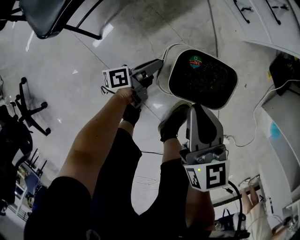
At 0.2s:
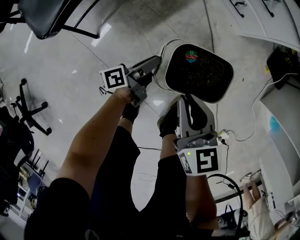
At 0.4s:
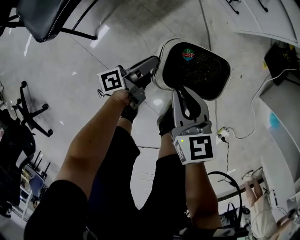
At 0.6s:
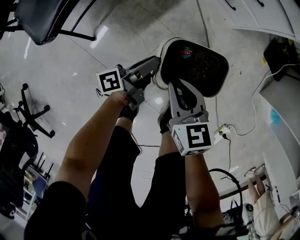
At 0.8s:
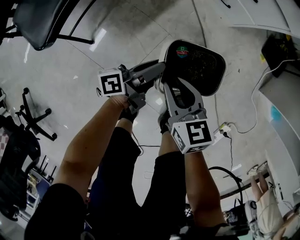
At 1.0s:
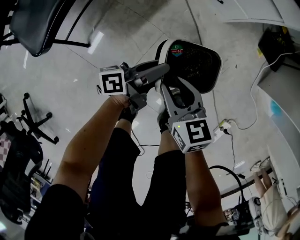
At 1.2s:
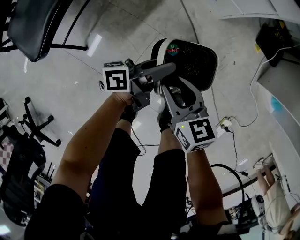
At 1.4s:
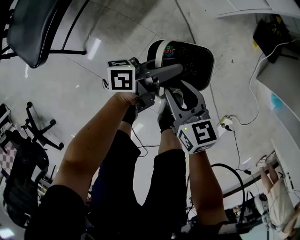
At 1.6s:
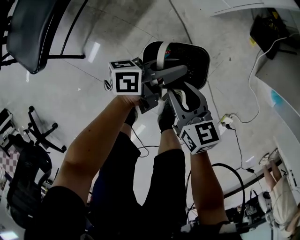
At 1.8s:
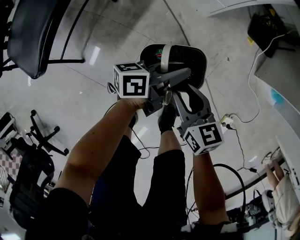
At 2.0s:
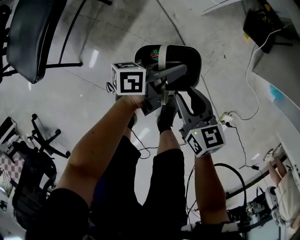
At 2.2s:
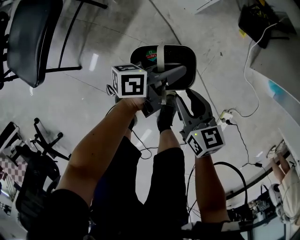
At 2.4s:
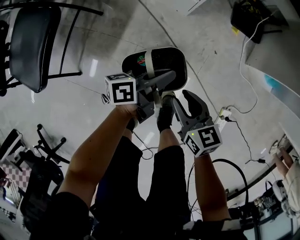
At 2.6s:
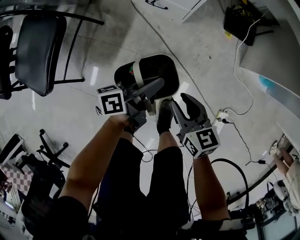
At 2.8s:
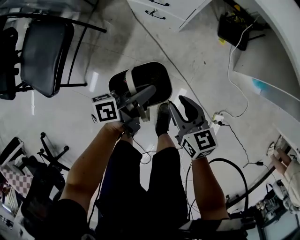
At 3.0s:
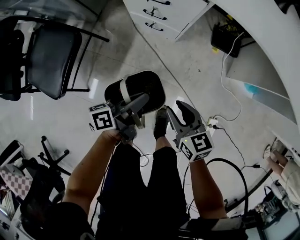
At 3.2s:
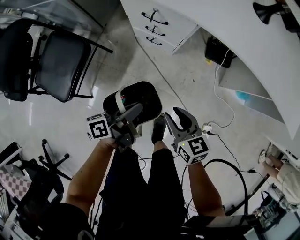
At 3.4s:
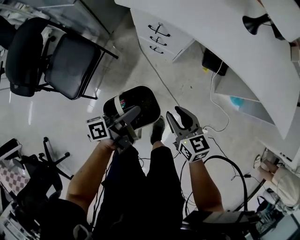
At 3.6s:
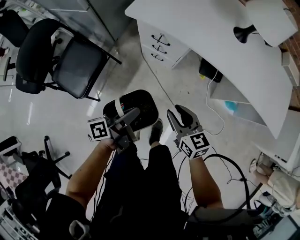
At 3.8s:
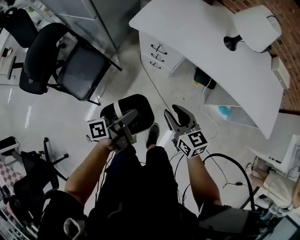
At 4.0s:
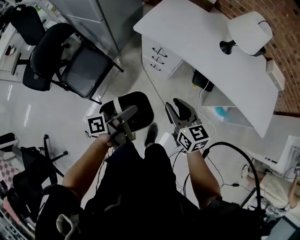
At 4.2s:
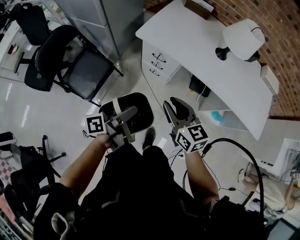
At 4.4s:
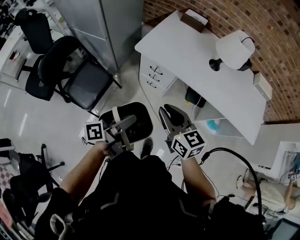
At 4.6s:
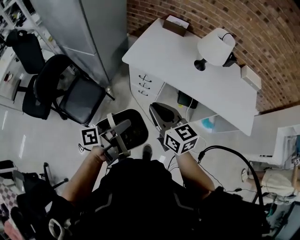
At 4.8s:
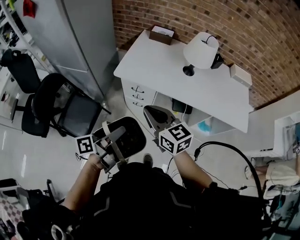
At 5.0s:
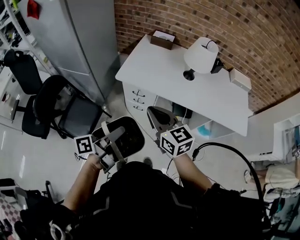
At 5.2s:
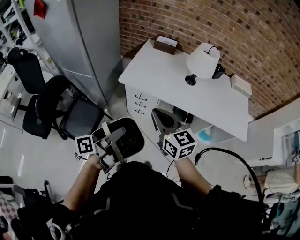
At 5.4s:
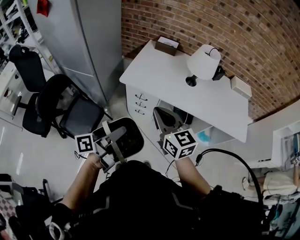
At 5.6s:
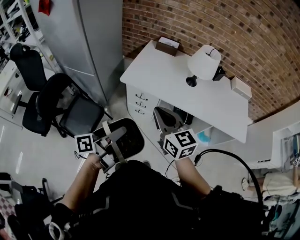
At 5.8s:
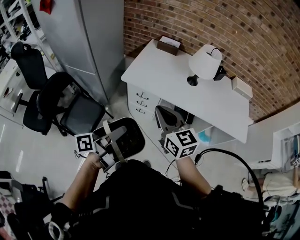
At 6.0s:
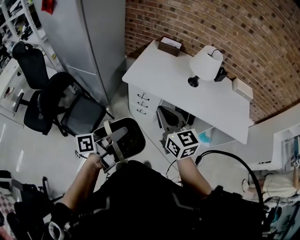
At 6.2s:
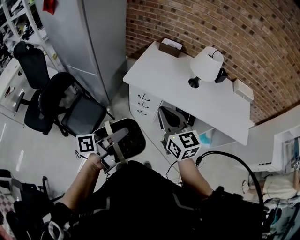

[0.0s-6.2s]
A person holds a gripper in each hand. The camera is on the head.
0.0s to 1.6s: The right gripper moves to the right, approximately 5 cm, and opens up; the left gripper is displaced to the right and upward by about 25 cm, and changes its angle by some 30 degrees.
1.6s to 3.2s: The two grippers go some 25 cm upward. The left gripper closes.
3.2s to 4.6s: Both grippers travel together upward, approximately 40 cm. The right gripper changes its angle by approximately 20 degrees.
4.6s to 6.2s: Both grippers travel together upward, roughly 5 cm.

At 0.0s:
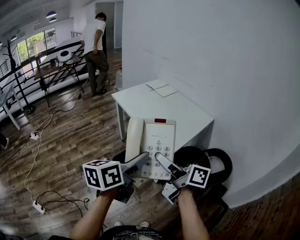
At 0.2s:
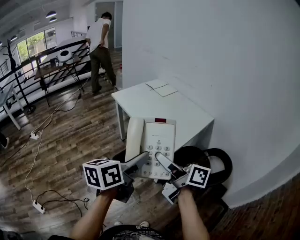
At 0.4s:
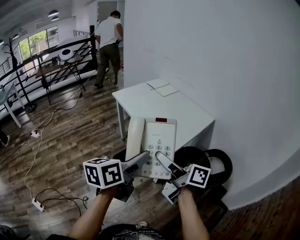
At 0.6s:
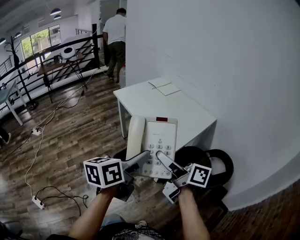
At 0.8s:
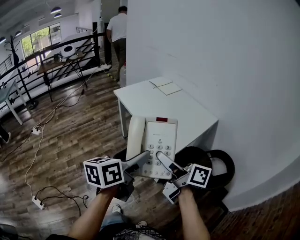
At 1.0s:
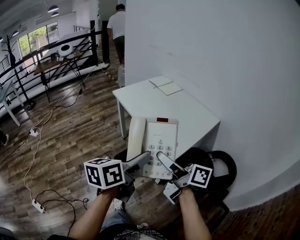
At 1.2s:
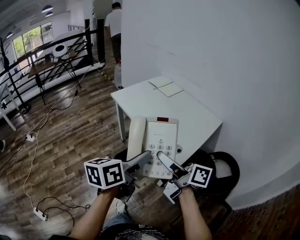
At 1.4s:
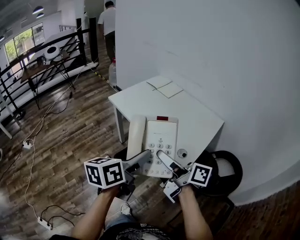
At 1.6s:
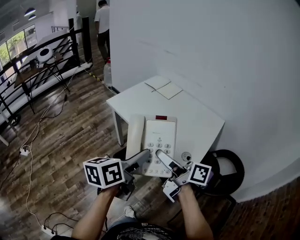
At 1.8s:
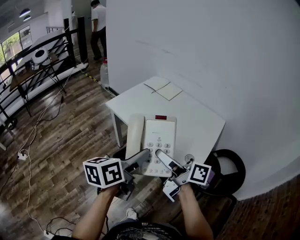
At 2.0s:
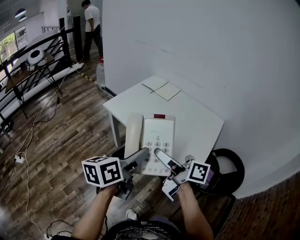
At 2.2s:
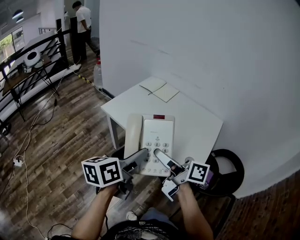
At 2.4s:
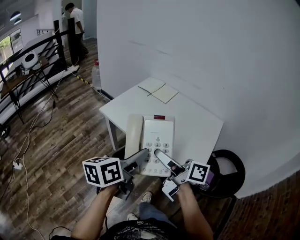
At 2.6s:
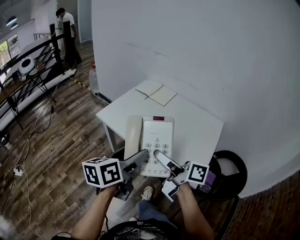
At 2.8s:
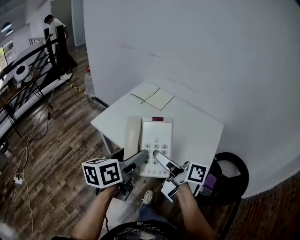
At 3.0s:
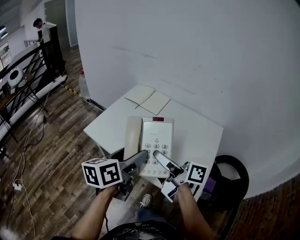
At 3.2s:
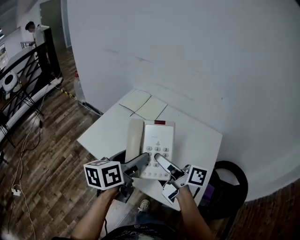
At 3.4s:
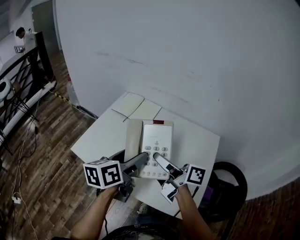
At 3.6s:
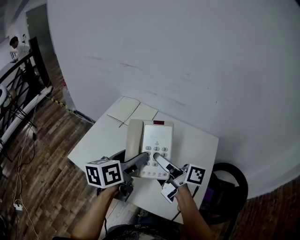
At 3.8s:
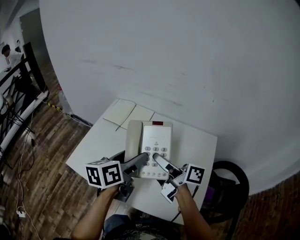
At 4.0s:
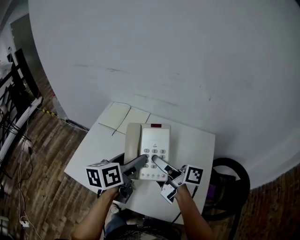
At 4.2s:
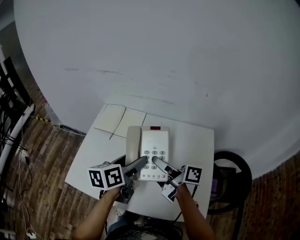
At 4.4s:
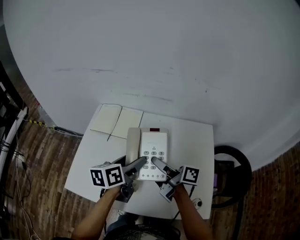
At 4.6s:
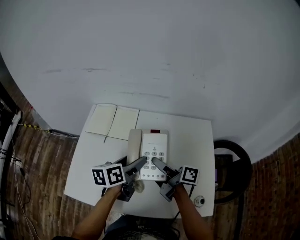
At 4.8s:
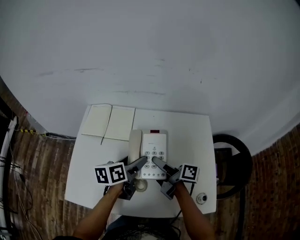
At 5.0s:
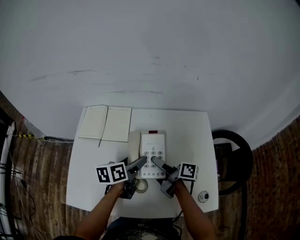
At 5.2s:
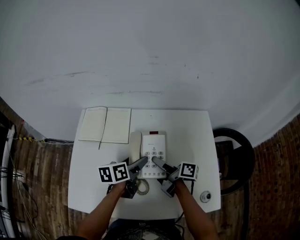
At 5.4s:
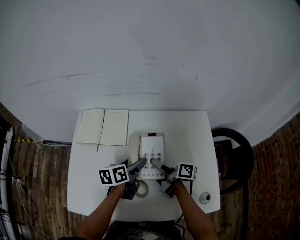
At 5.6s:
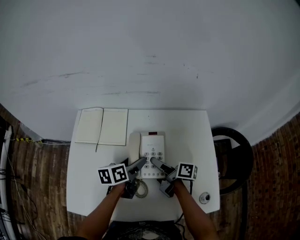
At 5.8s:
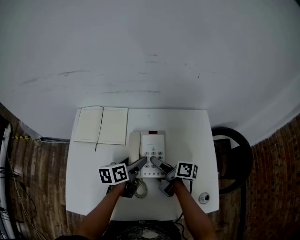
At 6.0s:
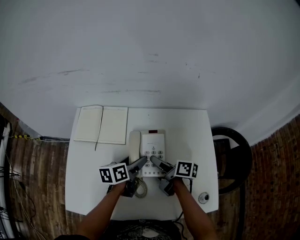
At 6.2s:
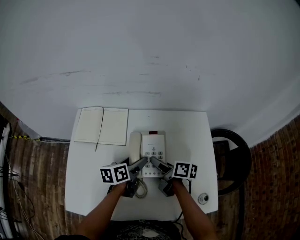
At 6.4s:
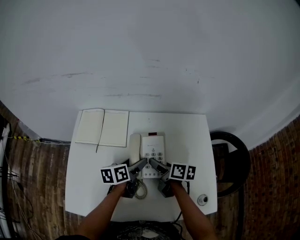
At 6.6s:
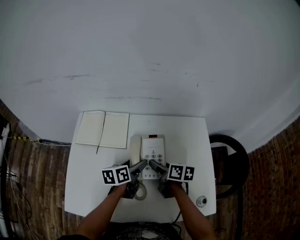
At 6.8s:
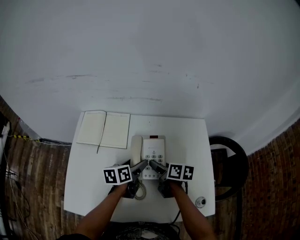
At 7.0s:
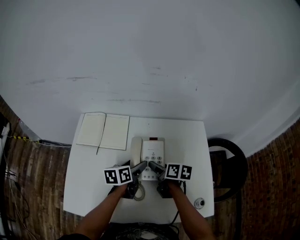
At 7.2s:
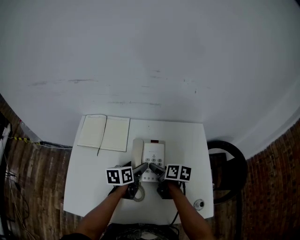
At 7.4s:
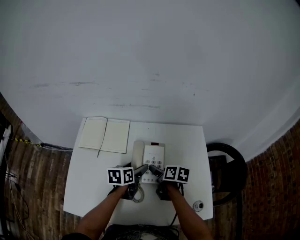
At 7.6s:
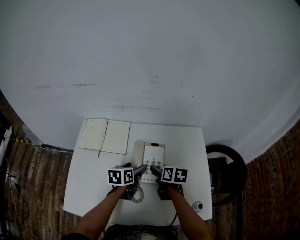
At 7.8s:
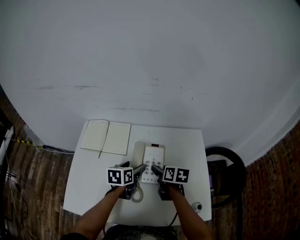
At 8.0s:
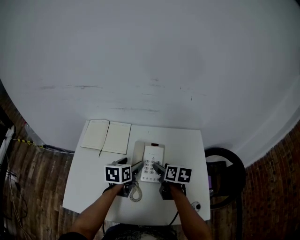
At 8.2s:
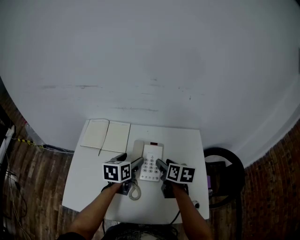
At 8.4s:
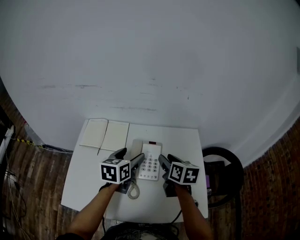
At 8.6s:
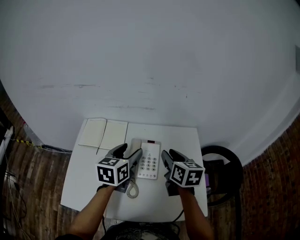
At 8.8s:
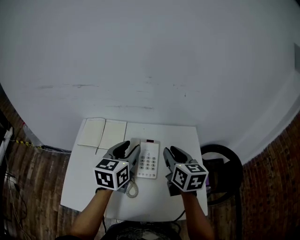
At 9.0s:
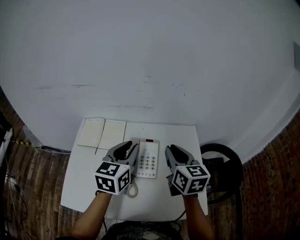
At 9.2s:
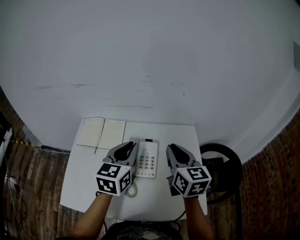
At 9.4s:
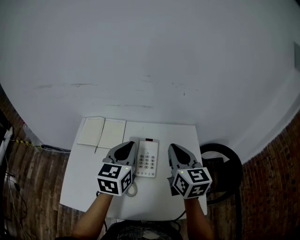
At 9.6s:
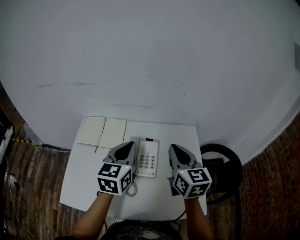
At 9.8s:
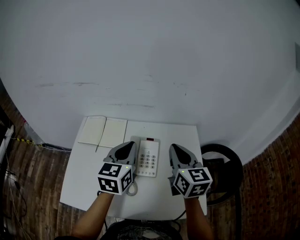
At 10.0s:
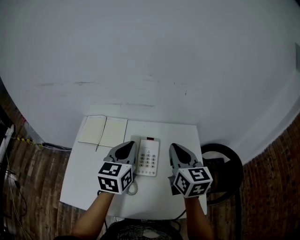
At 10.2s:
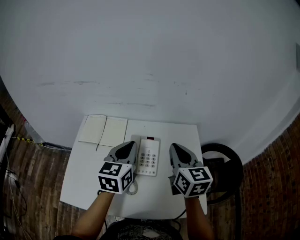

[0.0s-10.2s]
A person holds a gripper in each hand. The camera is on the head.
0.0s to 1.4s: Both grippers move forward, about 20 cm.
1.4s to 3.0s: Both grippers move forward, about 25 cm.
3.0s to 4.4s: Both grippers move forward, some 25 cm. The left gripper swivels approximately 20 degrees, while the right gripper turns by some 20 degrees.
4.4s to 5.8s: The two grippers go approximately 15 cm downward and forward. The right gripper turns by approximately 20 degrees.
5.8s to 7.2s: The right gripper turns by roughly 30 degrees, and opens.
7.2s to 8.8s: Both grippers travel together upward, some 20 cm. The left gripper changes its angle by approximately 30 degrees, and closes up, while the right gripper changes its angle by some 40 degrees, and closes.
8.8s to 10.2s: The left gripper closes up.

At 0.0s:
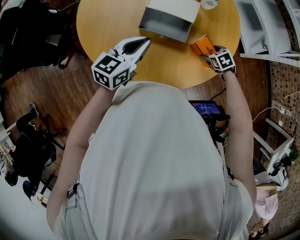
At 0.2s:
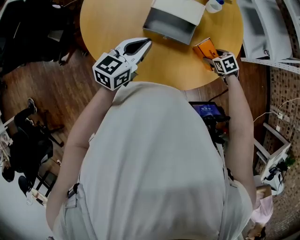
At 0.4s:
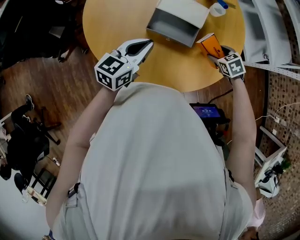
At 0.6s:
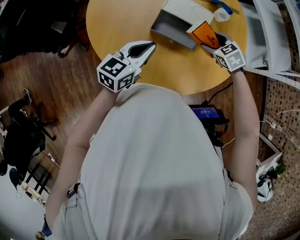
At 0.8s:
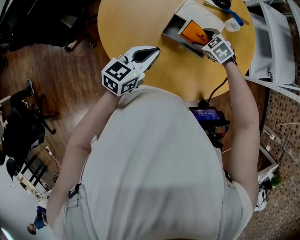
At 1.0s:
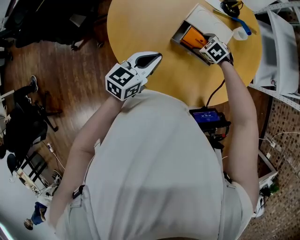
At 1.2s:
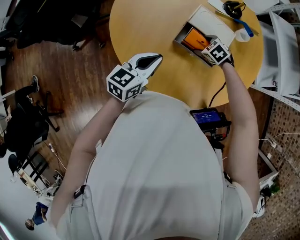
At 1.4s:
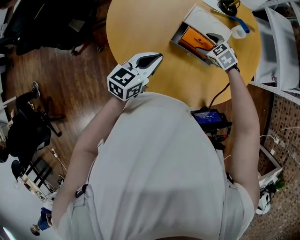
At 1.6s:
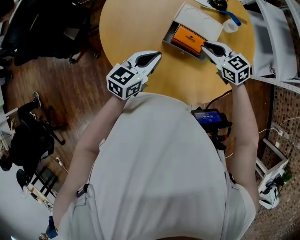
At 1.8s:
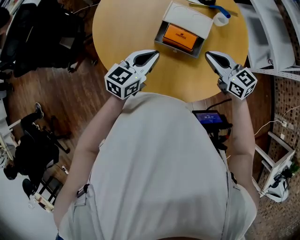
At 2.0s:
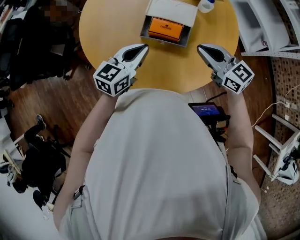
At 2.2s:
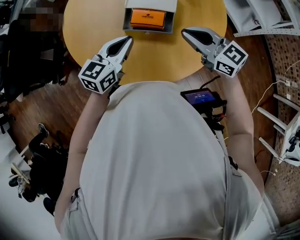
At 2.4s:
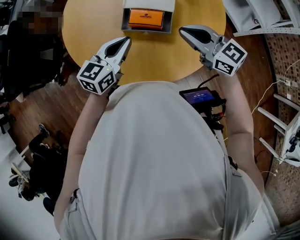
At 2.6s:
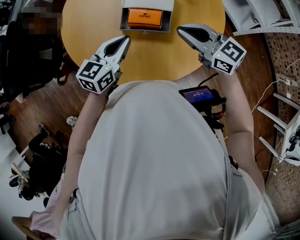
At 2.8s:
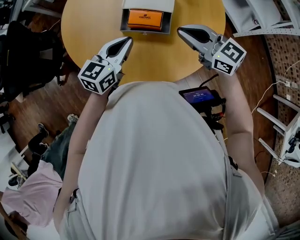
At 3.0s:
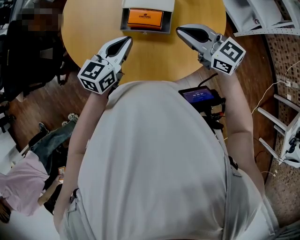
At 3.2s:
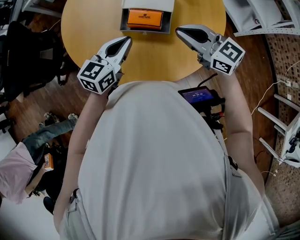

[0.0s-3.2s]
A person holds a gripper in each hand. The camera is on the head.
0.0s to 1.6s: The right gripper is displaced upward, to the left and forward by about 25 cm, tips its fingers upward by approximately 40 degrees, and closes.
1.6s to 3.2s: The right gripper travels backward, upward and to the right by approximately 15 cm, and rotates about 20 degrees. Meanwhile the left gripper heads to the right, covering about 5 cm.

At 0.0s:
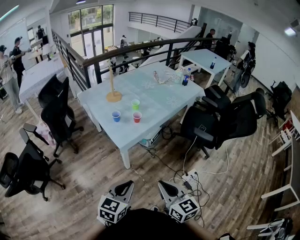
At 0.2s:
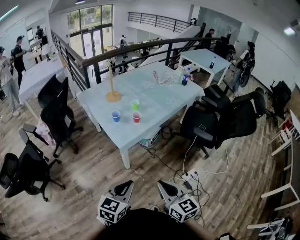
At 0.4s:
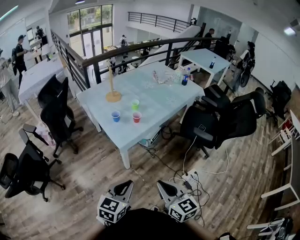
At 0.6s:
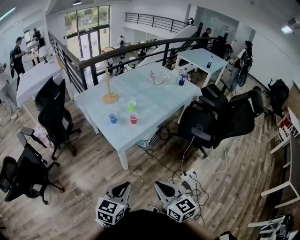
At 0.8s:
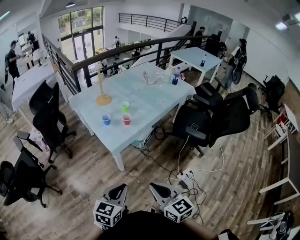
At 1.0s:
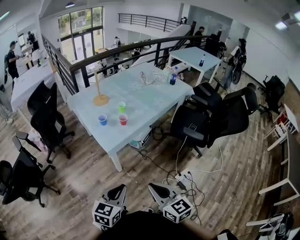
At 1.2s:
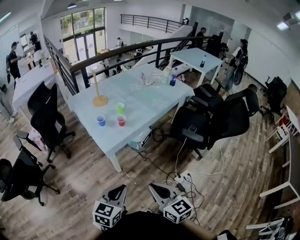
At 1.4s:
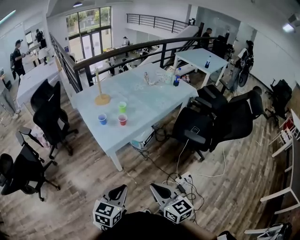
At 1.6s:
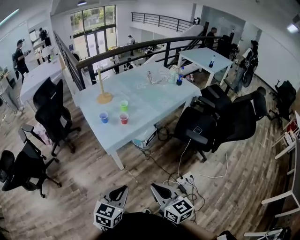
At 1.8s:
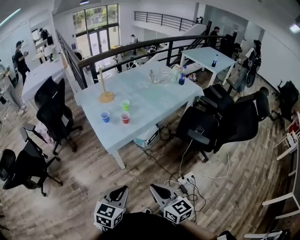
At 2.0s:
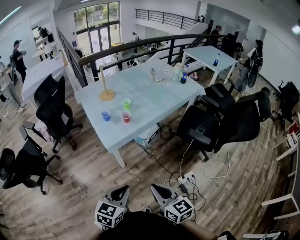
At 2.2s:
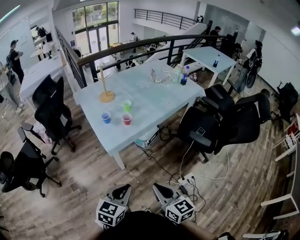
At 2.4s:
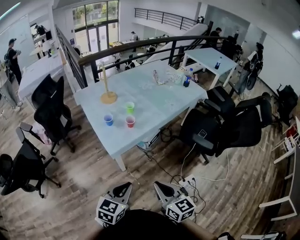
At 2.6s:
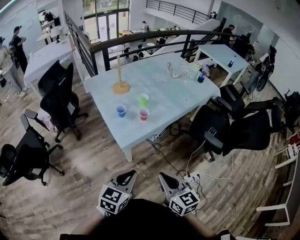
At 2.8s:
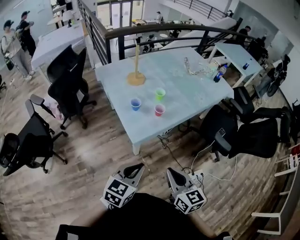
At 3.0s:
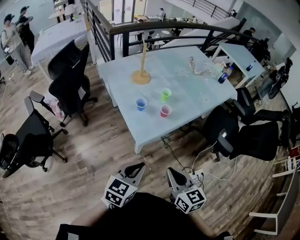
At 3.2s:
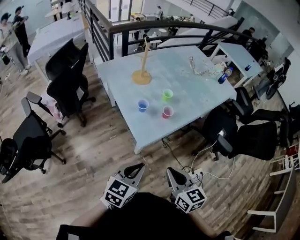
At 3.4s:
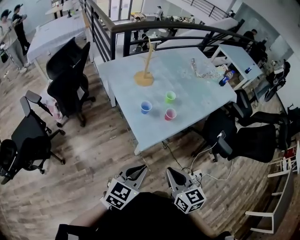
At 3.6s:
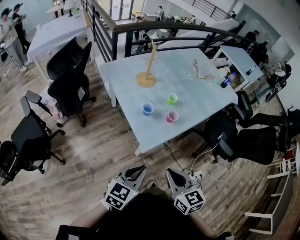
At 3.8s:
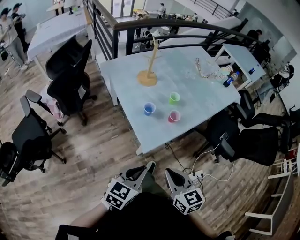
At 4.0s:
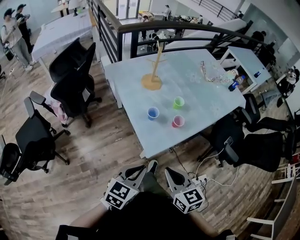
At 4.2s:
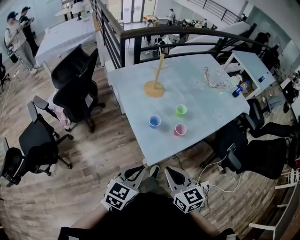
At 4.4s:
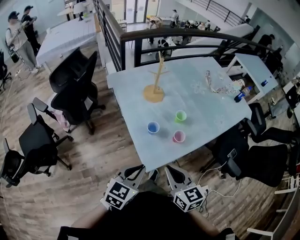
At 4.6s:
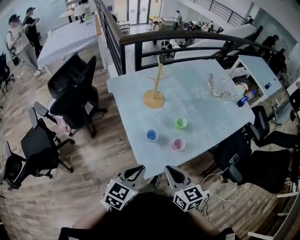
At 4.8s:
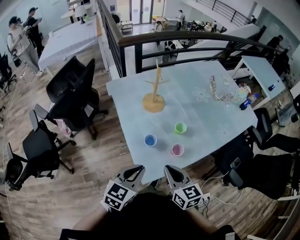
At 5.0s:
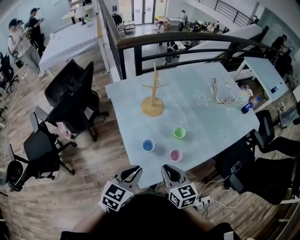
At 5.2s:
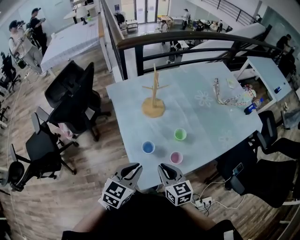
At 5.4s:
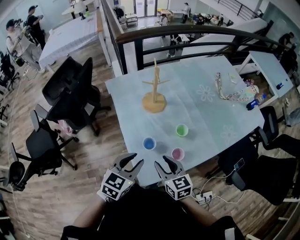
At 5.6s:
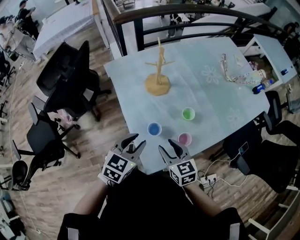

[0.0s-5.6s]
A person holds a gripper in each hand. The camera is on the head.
0.0s to 1.4s: The grippers both shift to the right by roughly 10 cm.
1.4s to 2.8s: The grippers both shift forward and to the left by about 20 cm.
2.8s to 4.2s: Both grippers move to the left and forward, about 20 cm.
4.2s to 5.6s: The right gripper goes some 25 cm forward and downward, and opens its fingers. The left gripper is displaced forward by roughly 25 cm, and opens up.
